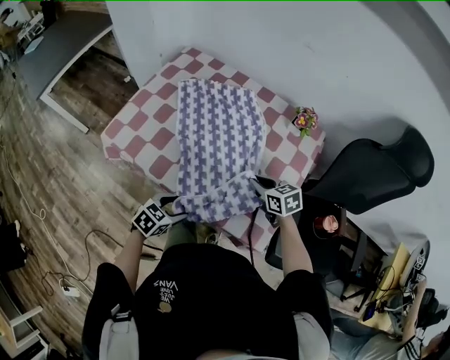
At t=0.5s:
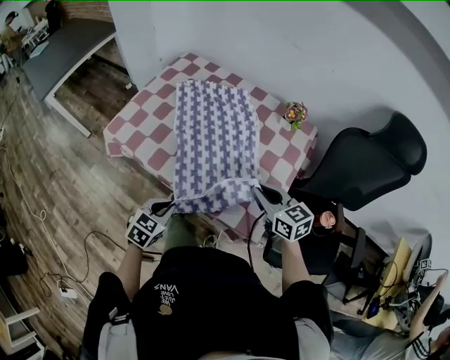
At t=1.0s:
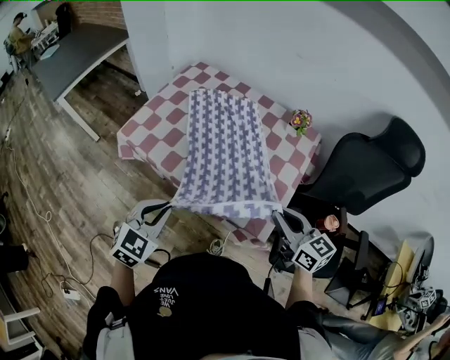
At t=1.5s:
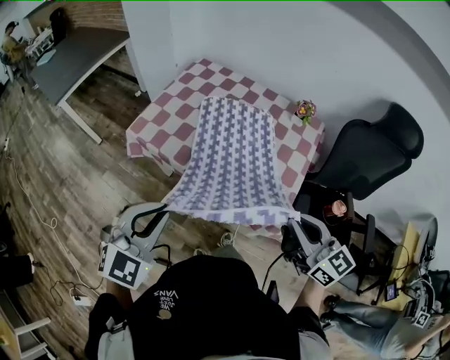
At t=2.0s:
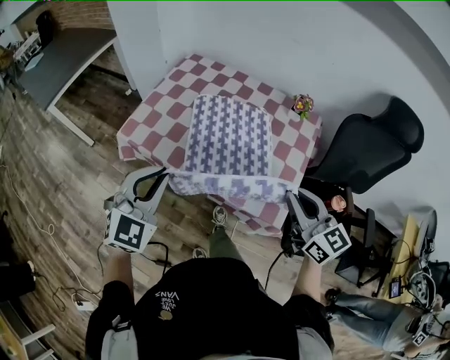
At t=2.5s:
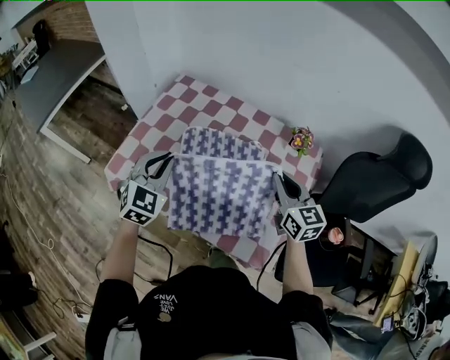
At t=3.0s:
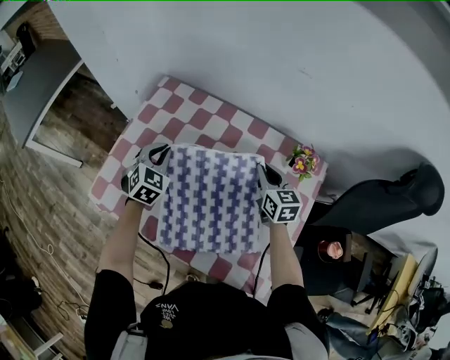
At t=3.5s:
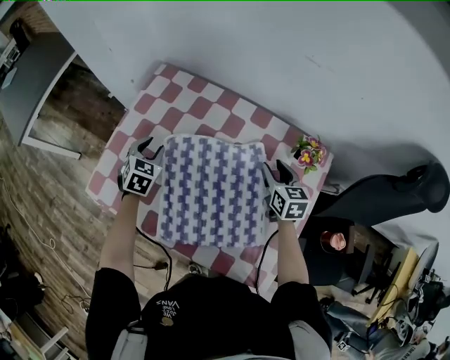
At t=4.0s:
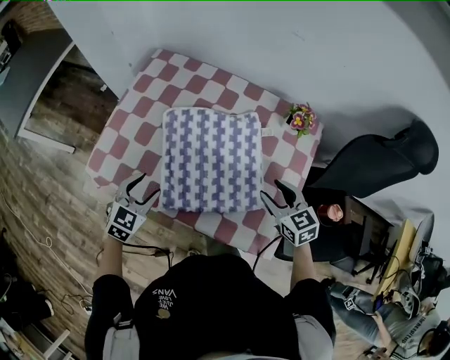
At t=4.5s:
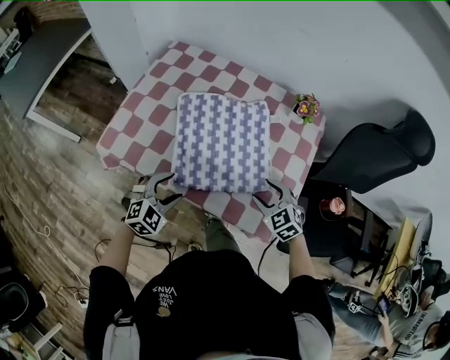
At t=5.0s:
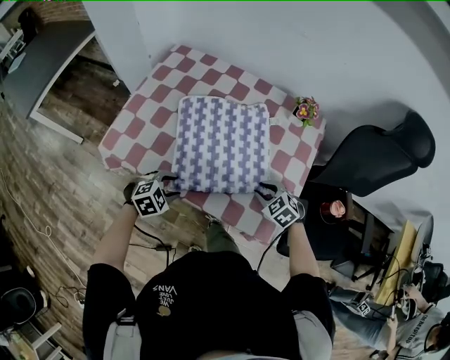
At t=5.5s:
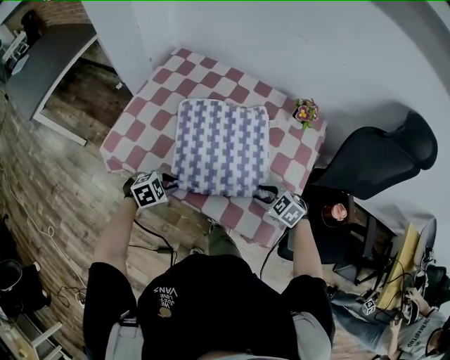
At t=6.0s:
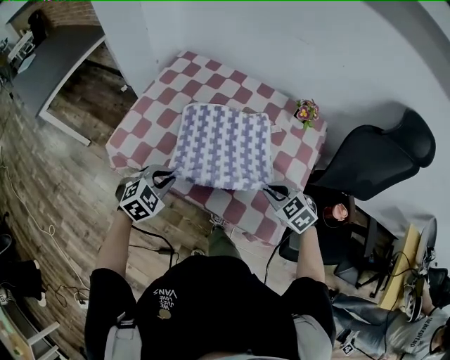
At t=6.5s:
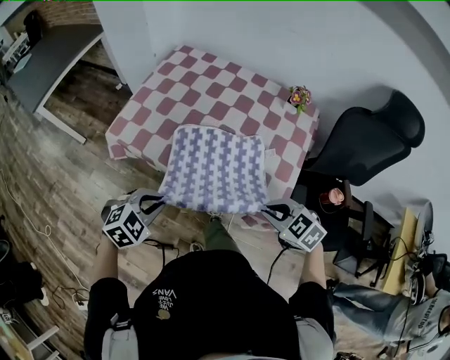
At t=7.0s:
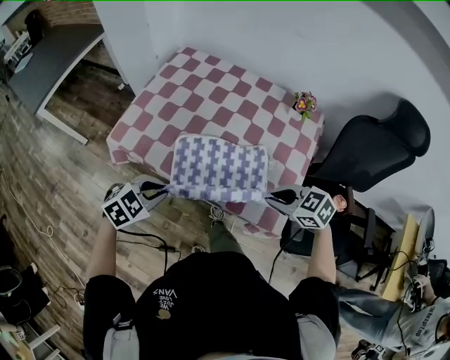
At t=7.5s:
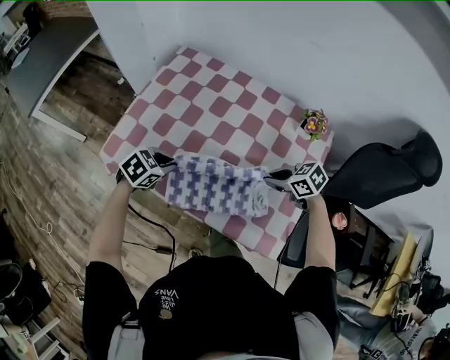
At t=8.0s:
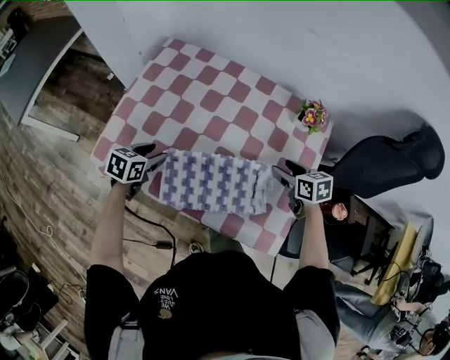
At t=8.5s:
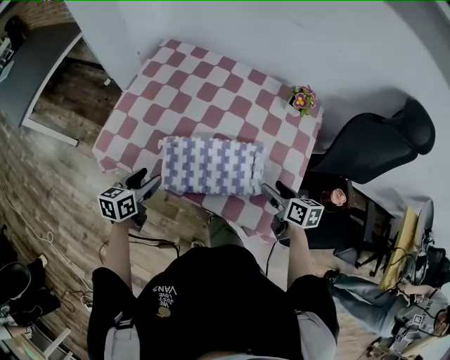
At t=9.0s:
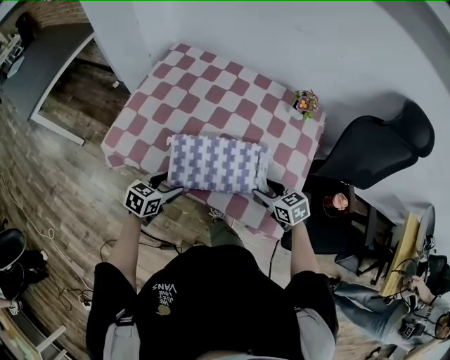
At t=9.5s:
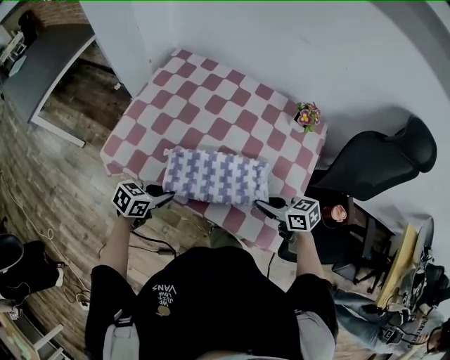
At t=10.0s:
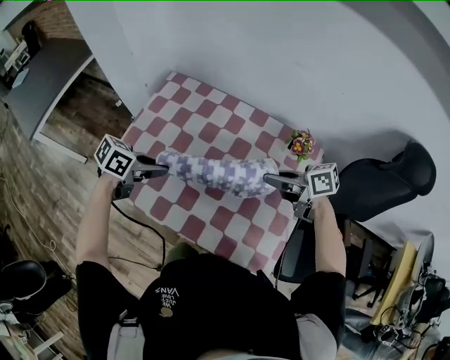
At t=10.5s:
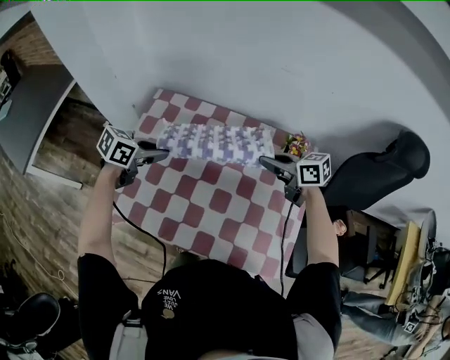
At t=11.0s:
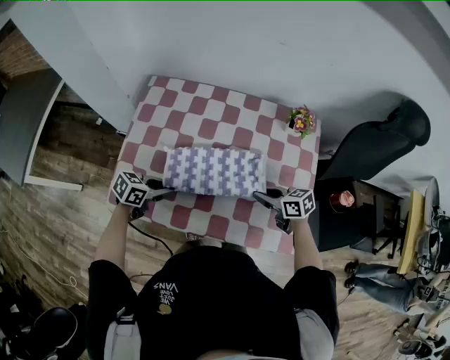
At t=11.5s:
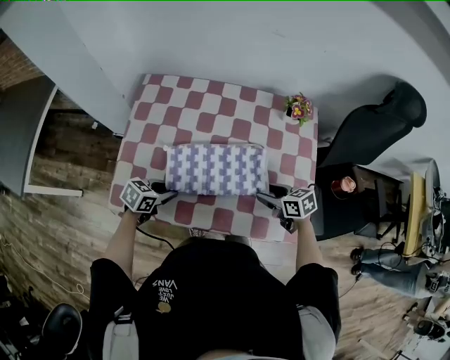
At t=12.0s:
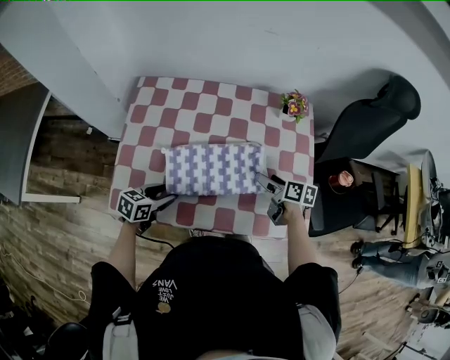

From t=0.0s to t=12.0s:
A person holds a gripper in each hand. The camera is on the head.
From t=0.0s to t=2.0s: The left gripper goes approximately 30 cm upward, points its fingers roughly 30 degrees further upward, and closes up; the right gripper heads upward and backward, covering approximately 30 cm, and tips its fingers upward by roughly 30 degrees.
From t=2.0s to t=4.0s: The two grippers go about 25 cm downward and forward. The left gripper turns by about 30 degrees, and opens its fingers; the right gripper changes its angle by about 30 degrees, and opens.
From t=4.0s to t=6.0s: The two grippers go approximately 5 cm backward. The left gripper travels downward and back again, about 10 cm each way, turns by some 20 degrees, and closes up; the right gripper travels downward and back again, about 10 cm each way, swivels roughly 30 degrees, and closes up.
From t=6.0s to t=8.0s: The right gripper shifts by roughly 15 cm, rotates around the line of its fingers by some 50 degrees, clockwise from behind, and opens; the left gripper ends up roughly 15 cm from where it was, rotates around the line of its fingers by about 50 degrees, counterclockwise from behind, and opens.
From t=8.0s to t=10.0s: The right gripper is displaced upward by approximately 15 cm, rotates approximately 40 degrees, and closes up. Meanwhile the left gripper swings up and down, approximately 15 cm each way, with 2 reversals, turns by approximately 30 degrees, and closes up.
From t=10.0s to t=12.0s: The two grippers go approximately 15 cm downward. The left gripper opens. Meanwhile the right gripper turns by some 60 degrees, and opens its fingers.

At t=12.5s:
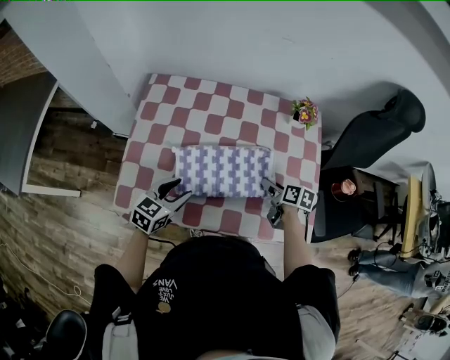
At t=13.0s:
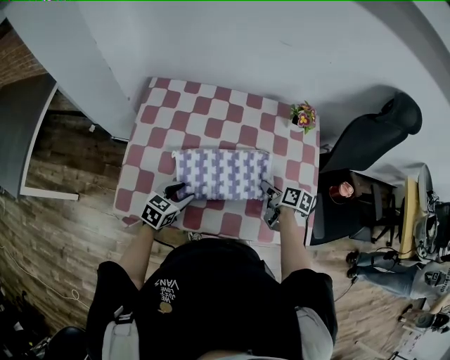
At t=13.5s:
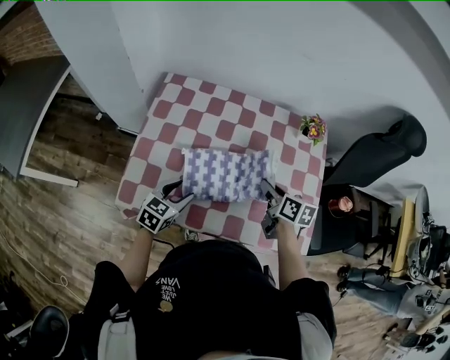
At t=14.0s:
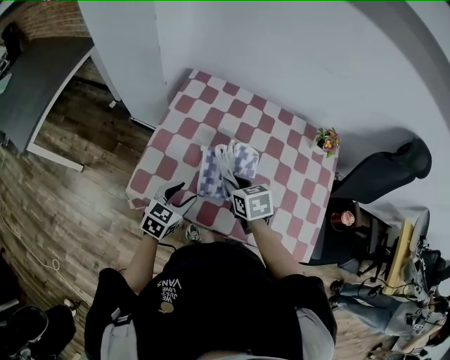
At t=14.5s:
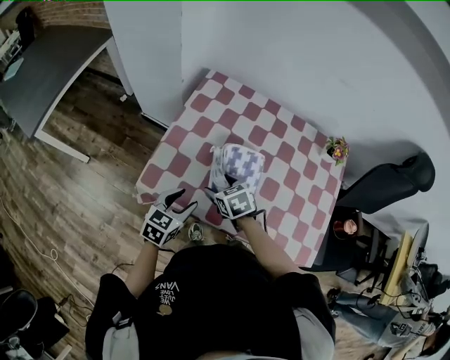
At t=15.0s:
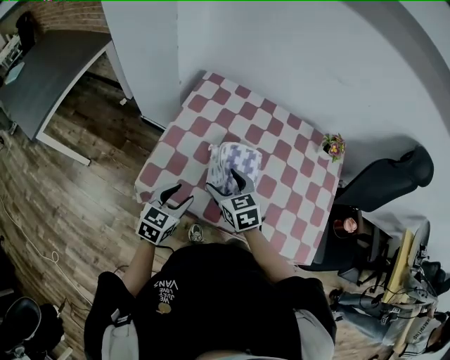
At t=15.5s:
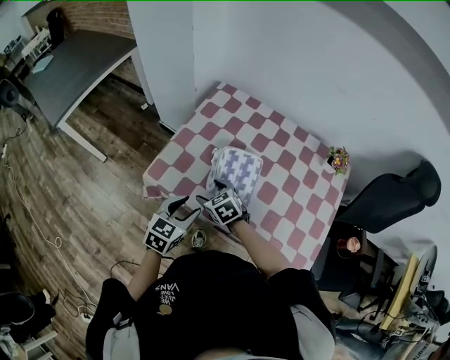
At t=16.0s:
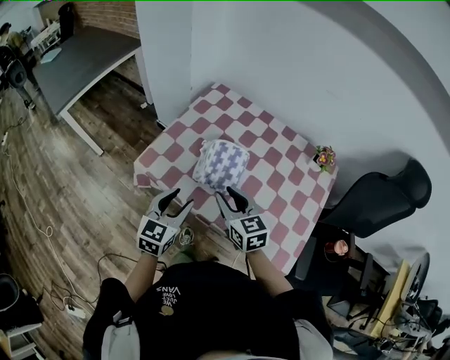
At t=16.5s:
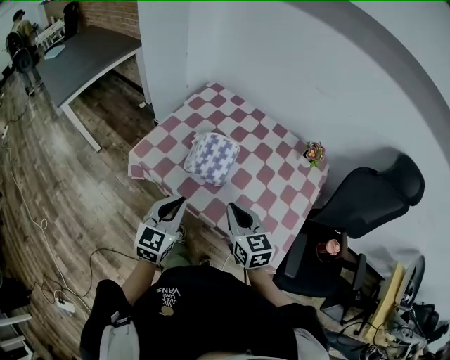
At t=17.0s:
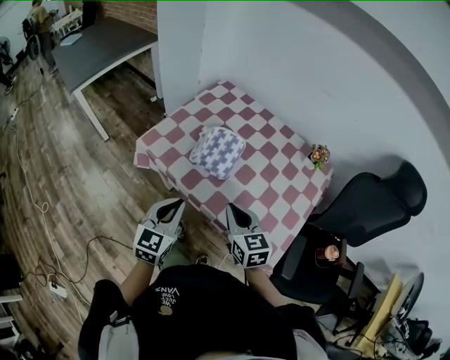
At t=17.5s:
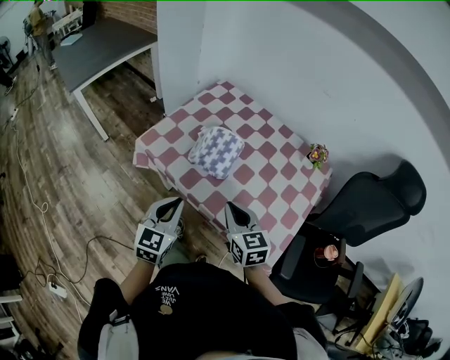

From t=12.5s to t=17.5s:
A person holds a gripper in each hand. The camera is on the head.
From t=12.5s to t=15.0s: The left gripper is displaced to the left and backward by some 10 cm, and turns by roughly 20 degrees; the right gripper shifts about 30 cm to the left, rolls counterclockwise, seen from behind, by approximately 60 degrees, and opens its fingers.
From t=15.0s to t=17.5s: The left gripper is displaced backward, upward and to the right by about 25 cm, rotates roughly 30 degrees, and closes its fingers; the right gripper goes about 25 cm backward and to the right, and closes up.

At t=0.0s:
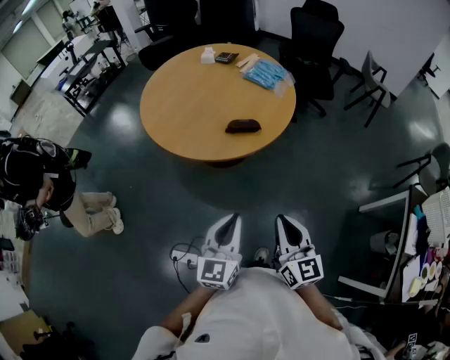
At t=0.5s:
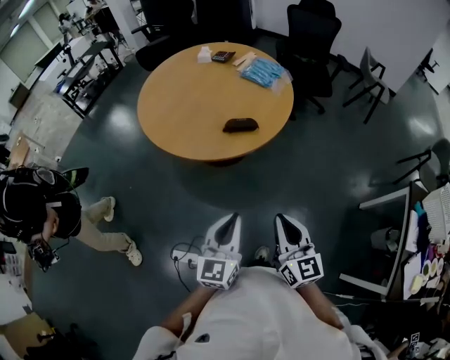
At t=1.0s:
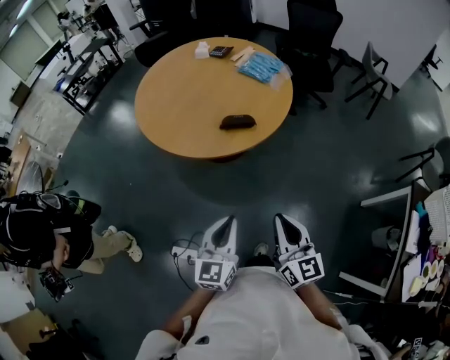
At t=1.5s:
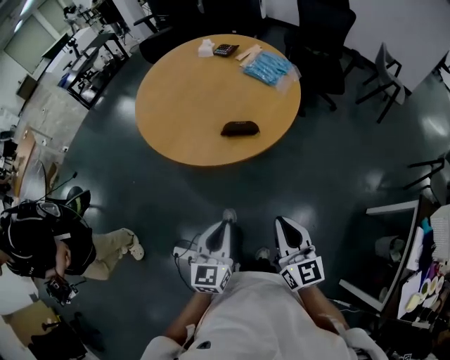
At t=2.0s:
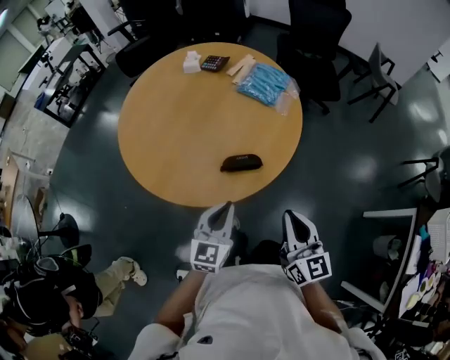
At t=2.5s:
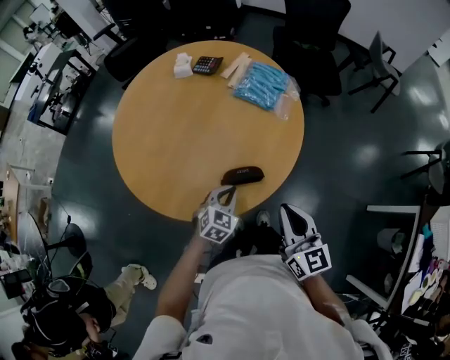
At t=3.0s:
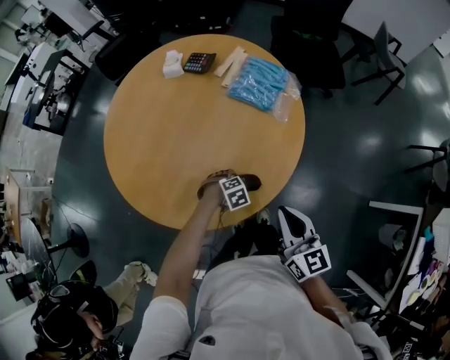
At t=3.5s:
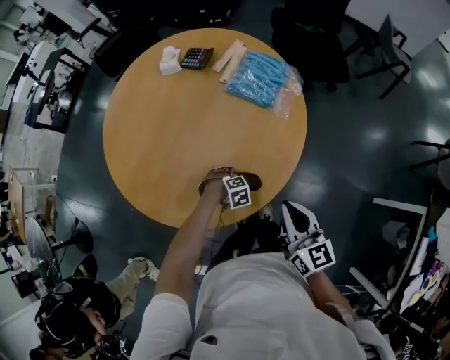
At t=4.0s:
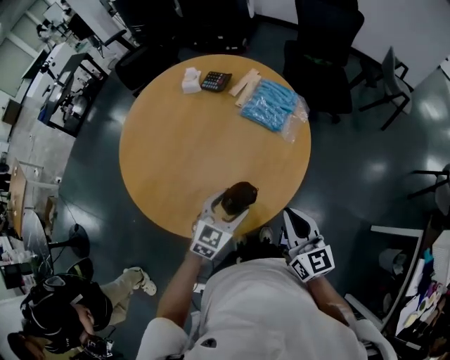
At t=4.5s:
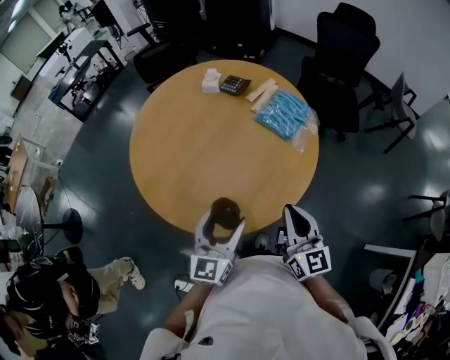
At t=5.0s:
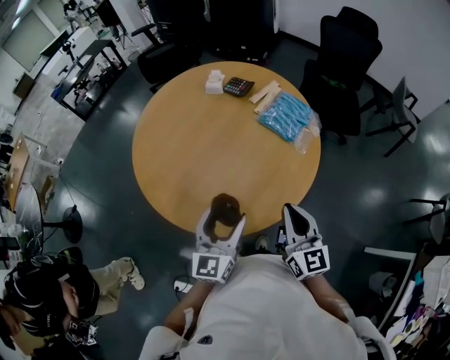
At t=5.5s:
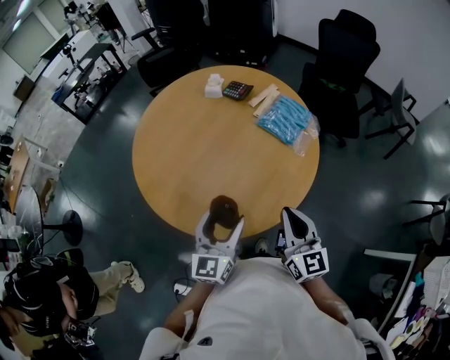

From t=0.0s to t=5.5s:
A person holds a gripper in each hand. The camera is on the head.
From t=0.0s to t=2.0s: The grippers both shift forward by some 25 cm.
From t=2.0s to t=3.5s: The right gripper moves roughly 15 cm; the left gripper heads downward, covering approximately 30 cm, tips its fingers downward by roughly 70 degrees, and opens its fingers.
From t=3.5s to t=5.5s: The right gripper moves upward, roughly 5 cm; the left gripper is displaced upward by roughly 35 cm, and points its fingers some 80 degrees further upward.

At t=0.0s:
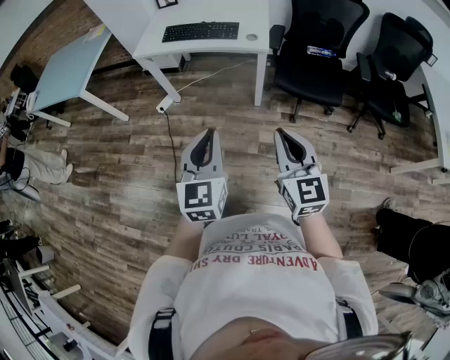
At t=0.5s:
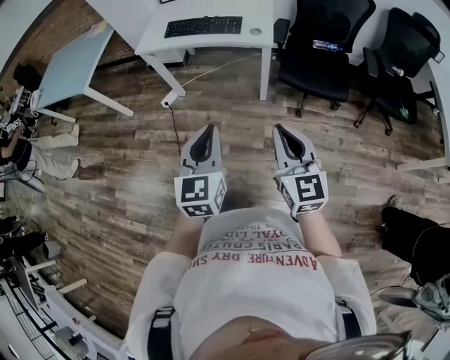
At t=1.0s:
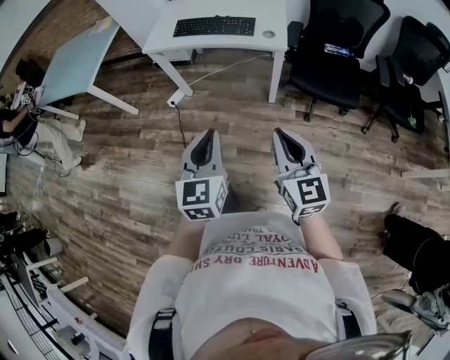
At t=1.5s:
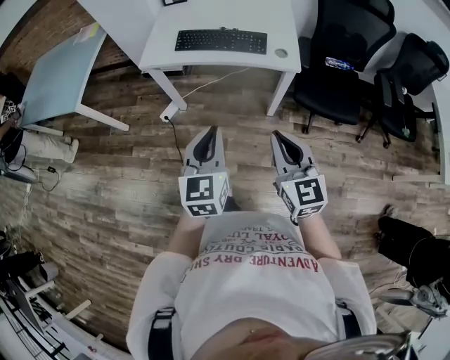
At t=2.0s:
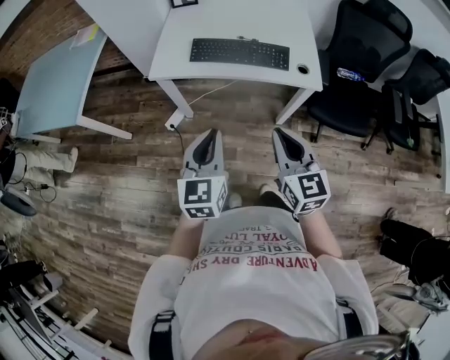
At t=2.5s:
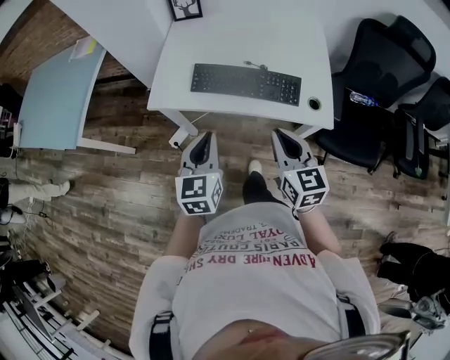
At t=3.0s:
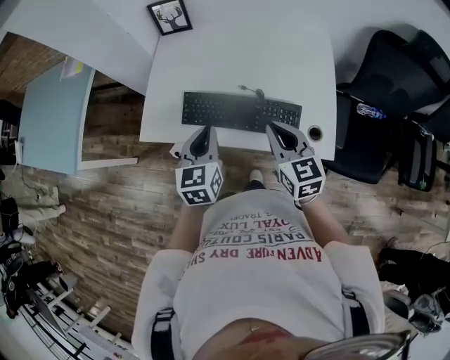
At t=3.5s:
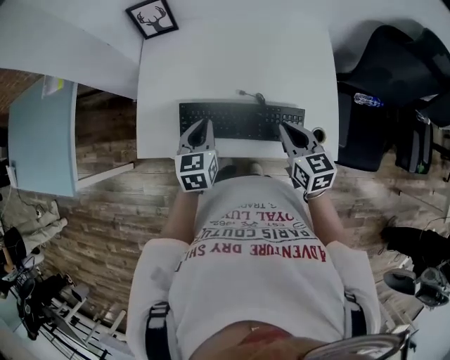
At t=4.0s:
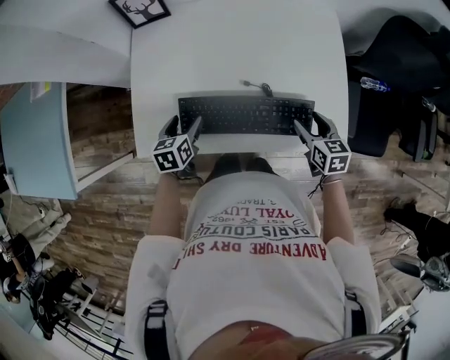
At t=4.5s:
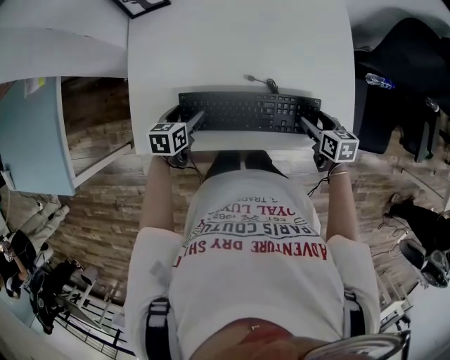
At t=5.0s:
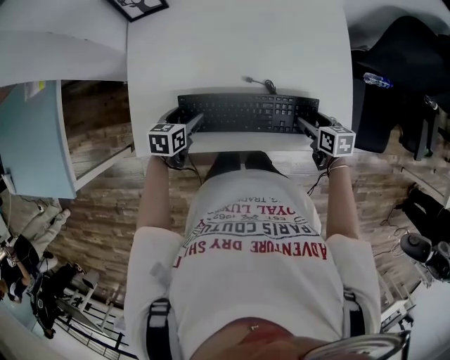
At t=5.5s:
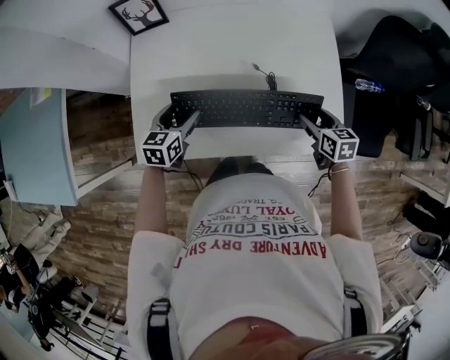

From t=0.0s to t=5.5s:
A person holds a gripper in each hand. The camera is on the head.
From t=0.0s to t=2.0s: The two grippers travel together, forward and to the left, roughly 40 cm.
From t=2.0s to t=3.5s: The pair of grippers is taken forward, approximately 40 cm. The right gripper swivels about 20 degrees.
From t=3.5s to t=5.5s: The left gripper moves to the left, forward and downward, about 10 cm, and opens its fingers. The right gripper goes about 15 cm to the right and downward, and opens its fingers.
